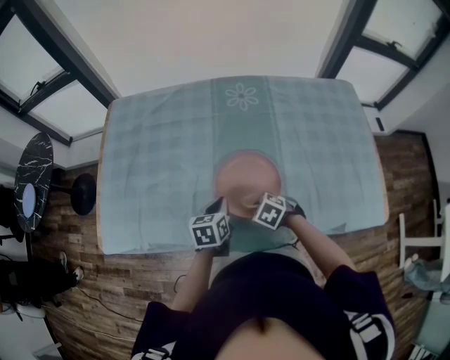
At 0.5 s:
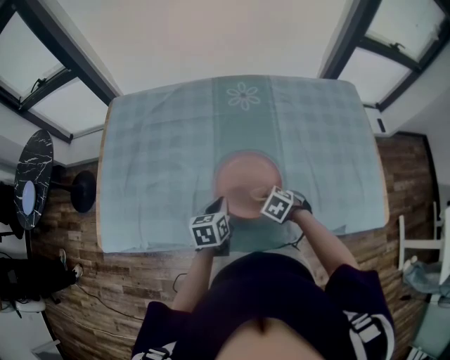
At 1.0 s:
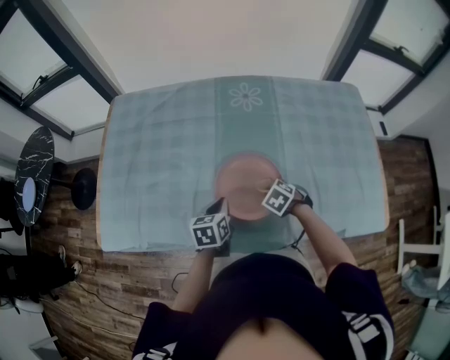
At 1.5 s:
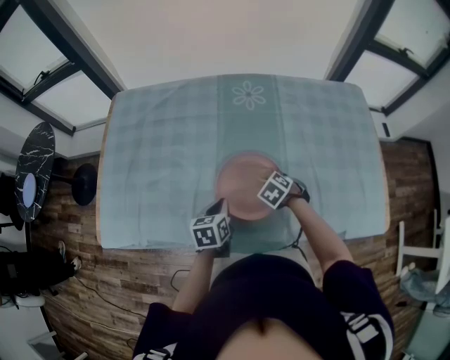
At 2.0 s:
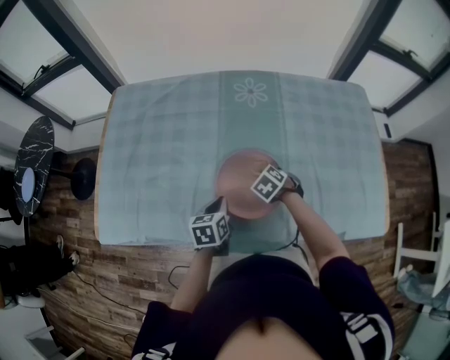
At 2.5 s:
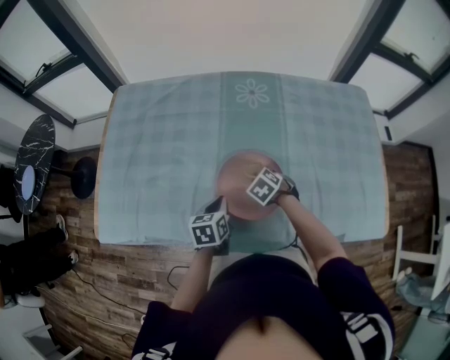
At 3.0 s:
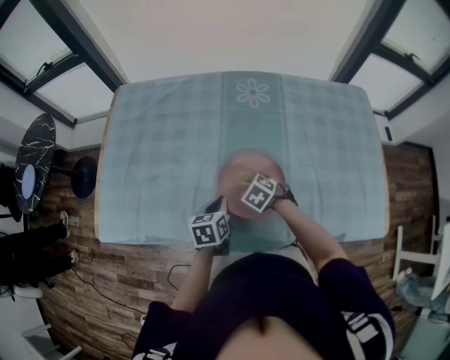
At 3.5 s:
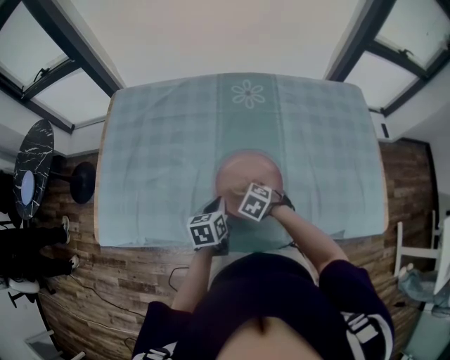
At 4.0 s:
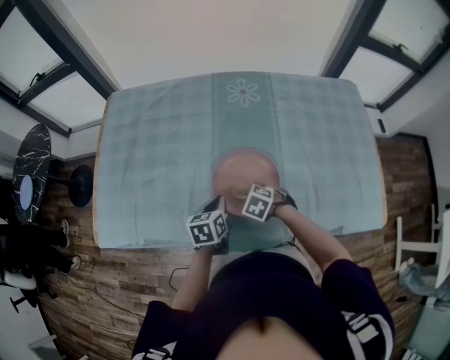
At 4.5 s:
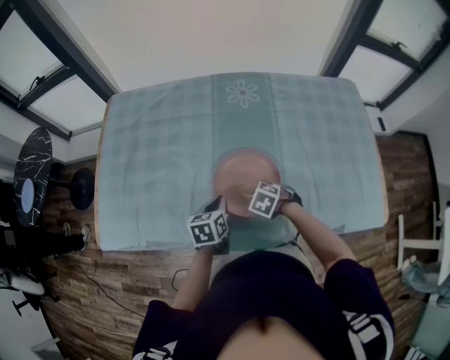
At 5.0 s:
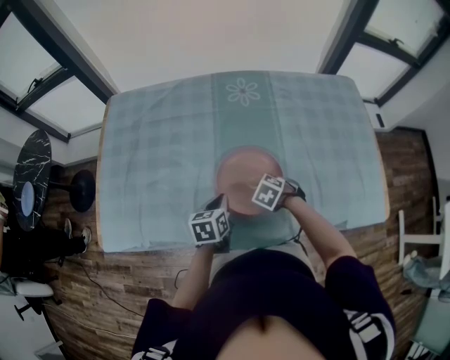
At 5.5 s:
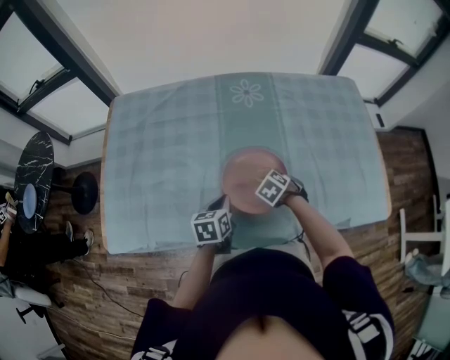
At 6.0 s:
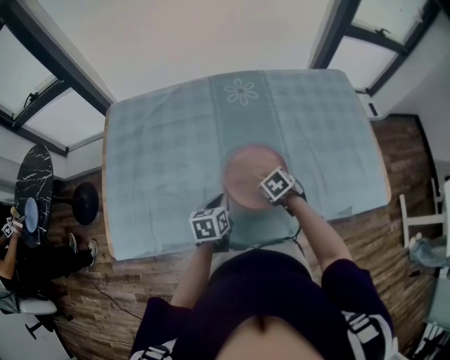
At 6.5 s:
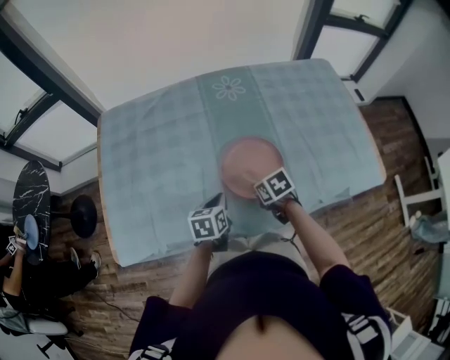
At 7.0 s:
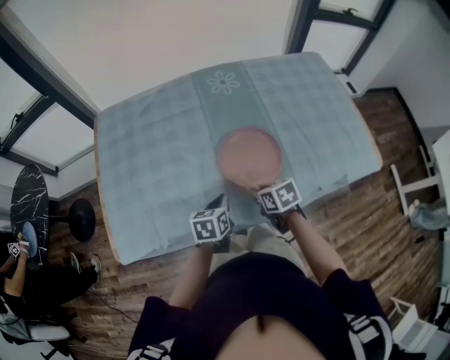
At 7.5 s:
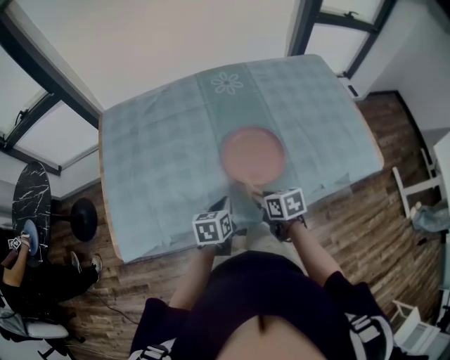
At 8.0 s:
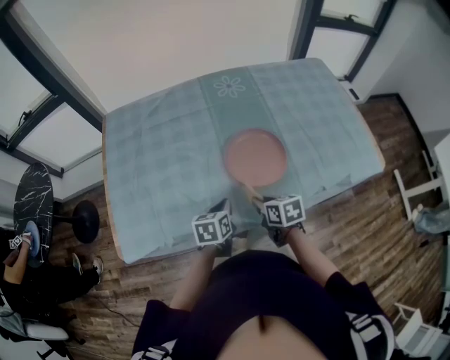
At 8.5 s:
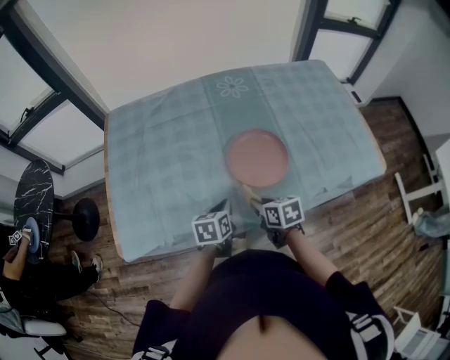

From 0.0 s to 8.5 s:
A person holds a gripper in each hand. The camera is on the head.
From 0.0 s to 2.0 s: The right gripper ends up approximately 15 cm from where it was.
From 2.0 s to 4.0 s: The right gripper moves roughly 10 cm.
From 4.0 s to 6.5 s: The left gripper changes place by approximately 5 cm. The right gripper ends up about 5 cm from where it was, and rolls clockwise, seen from behind, by some 50 degrees.
From 6.5 s to 8.5 s: The right gripper is displaced backward and to the left by about 10 cm, and changes its angle by roughly 20 degrees. The left gripper heads backward, covering roughly 5 cm.

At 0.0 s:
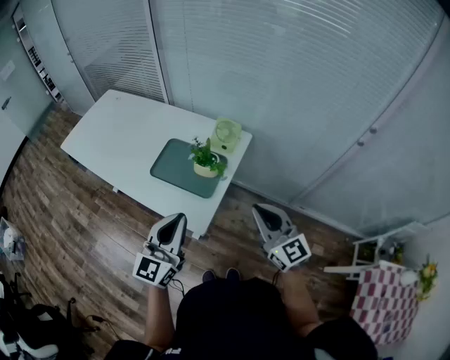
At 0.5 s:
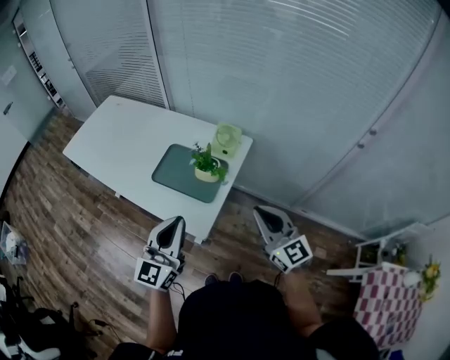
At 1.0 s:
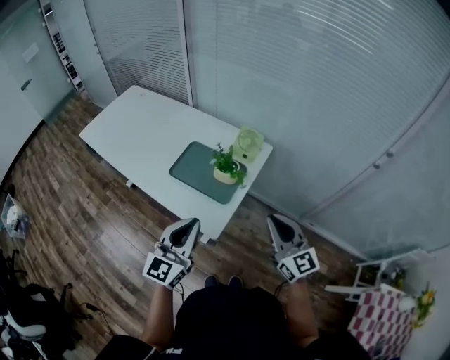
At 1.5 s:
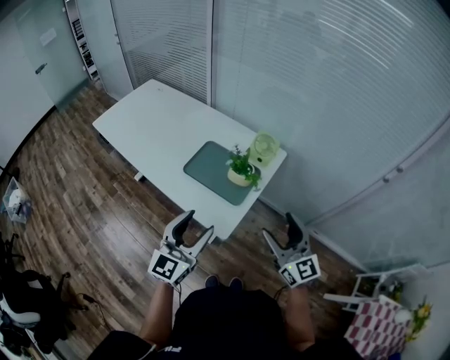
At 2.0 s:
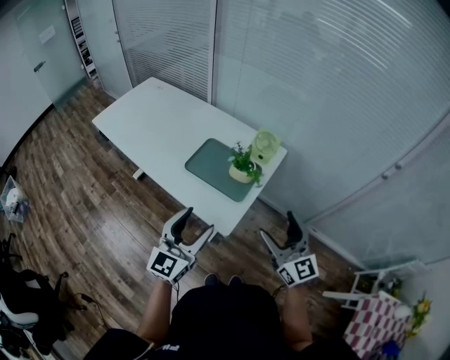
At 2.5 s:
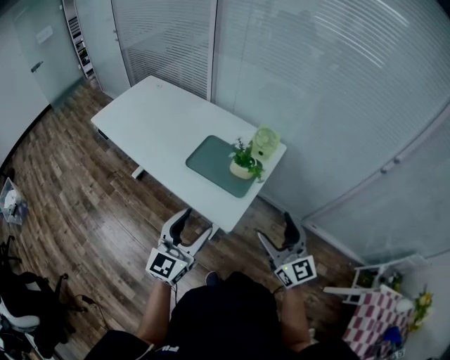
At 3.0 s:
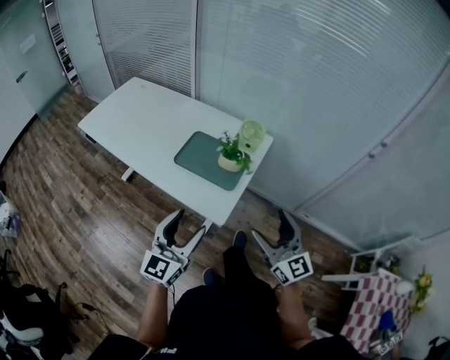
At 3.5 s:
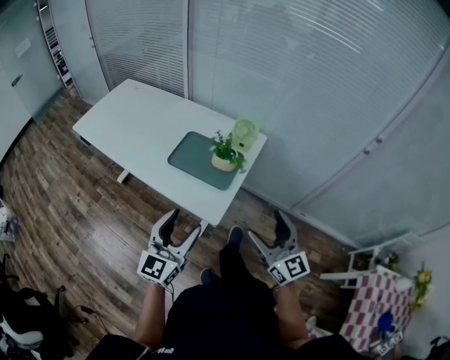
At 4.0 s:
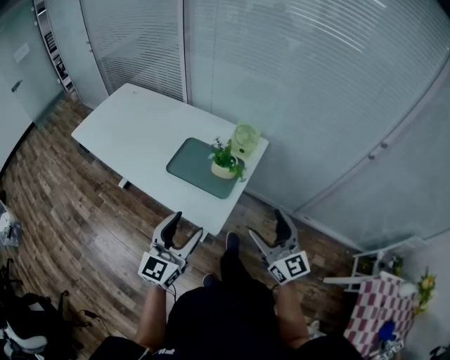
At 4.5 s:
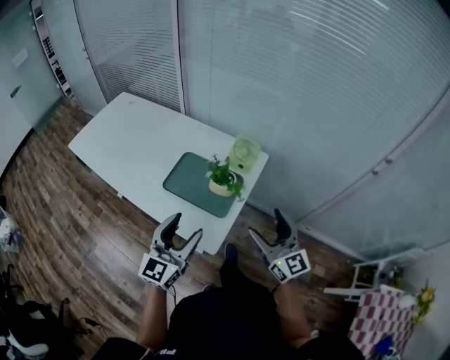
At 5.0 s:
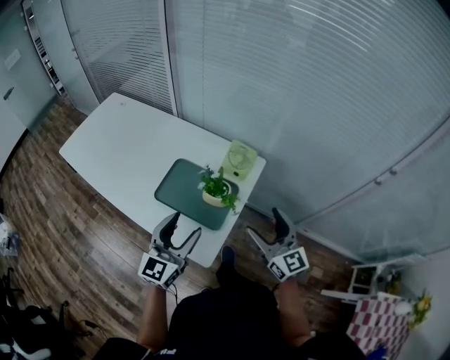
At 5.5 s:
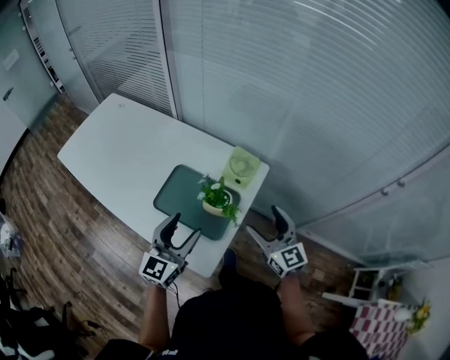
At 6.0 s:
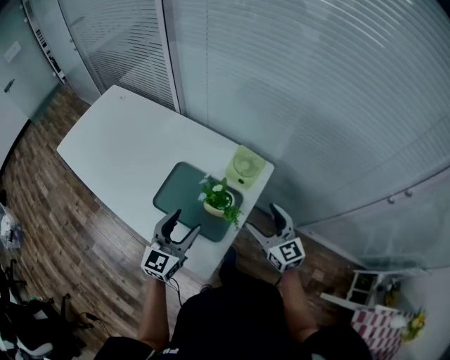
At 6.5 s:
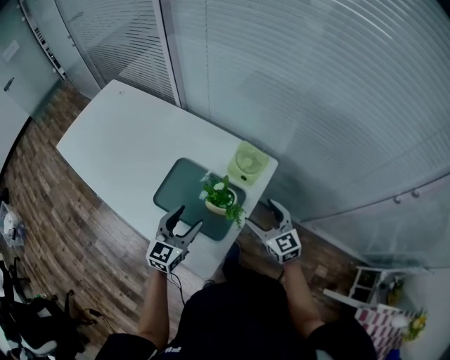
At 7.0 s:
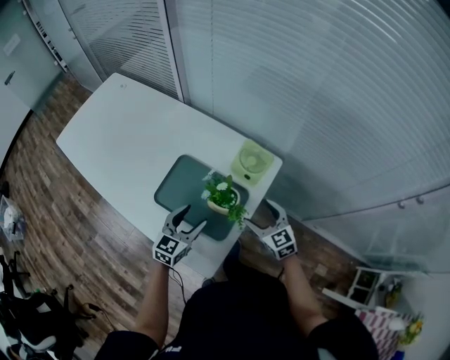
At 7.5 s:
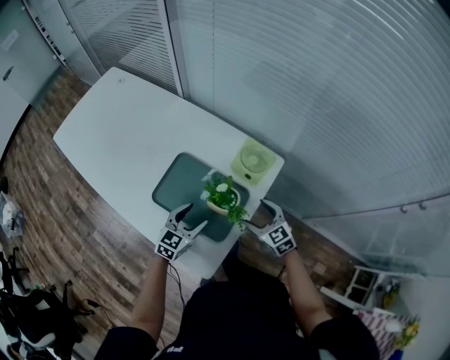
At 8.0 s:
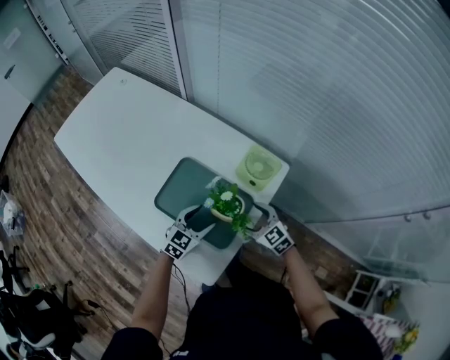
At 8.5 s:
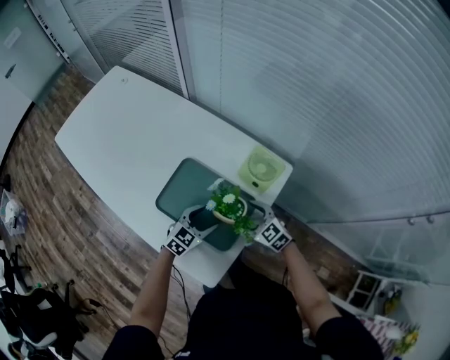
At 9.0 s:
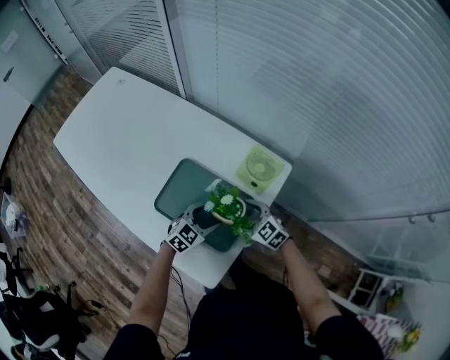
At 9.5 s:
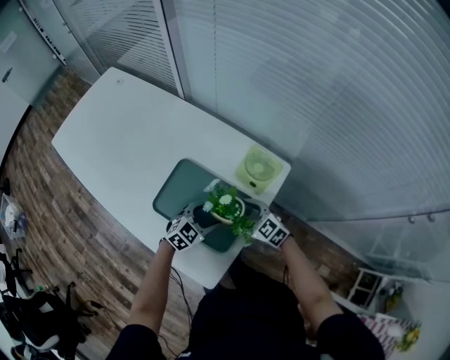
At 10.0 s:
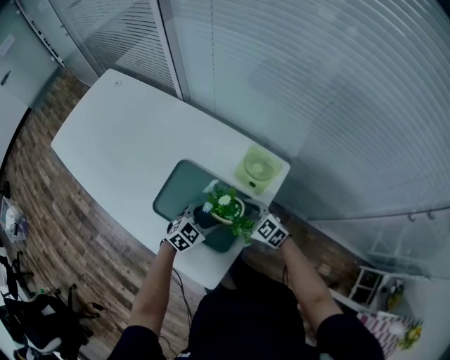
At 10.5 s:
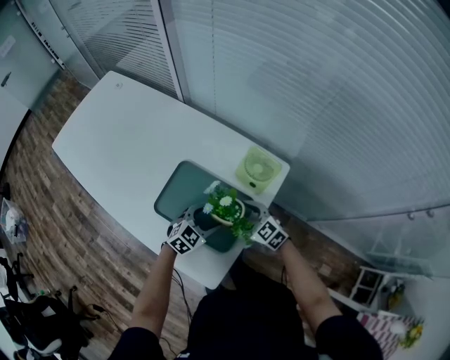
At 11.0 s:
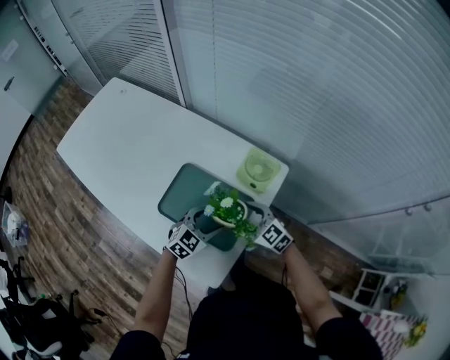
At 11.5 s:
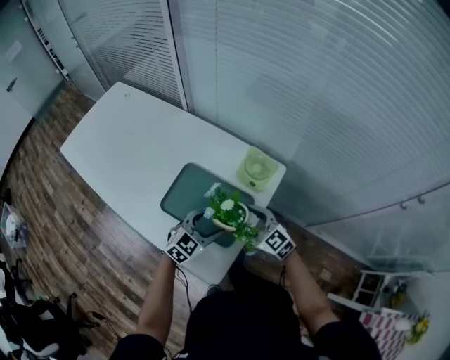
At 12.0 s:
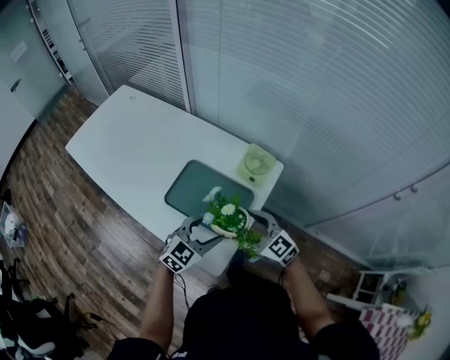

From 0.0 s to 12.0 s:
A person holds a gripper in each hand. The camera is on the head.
From 0.0 s to 2.0 s: The left gripper goes roughly 5 cm to the left, and opens. The right gripper opens its fingers.
From 2.0 s to 4.0 s: The grippers move only a little.
From 4.0 s to 6.0 s: The right gripper moves forward and downward, some 25 cm. The left gripper shifts approximately 20 cm forward.
From 6.0 s to 8.0 s: The two grippers go some 15 cm downward. The right gripper rotates roughly 30 degrees. The left gripper rotates about 30 degrees.
From 8.0 s to 10.0 s: The grippers make only small movements.
From 10.0 s to 12.0 s: The two grippers go about 15 cm upward and backward.

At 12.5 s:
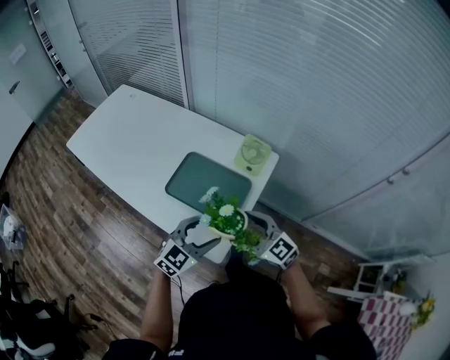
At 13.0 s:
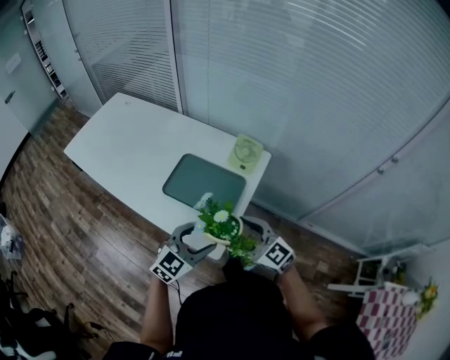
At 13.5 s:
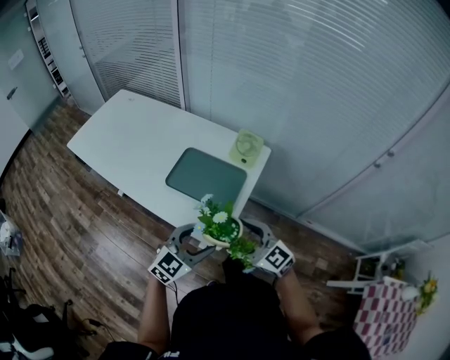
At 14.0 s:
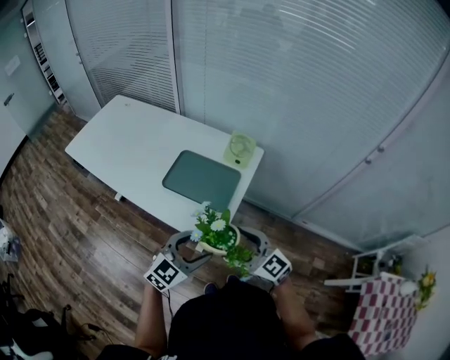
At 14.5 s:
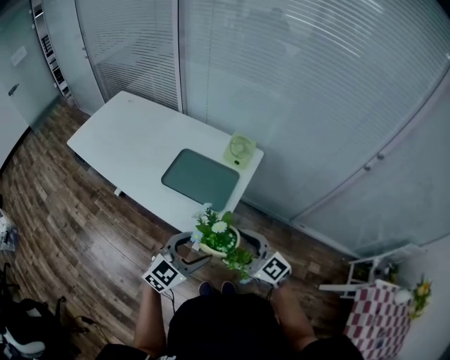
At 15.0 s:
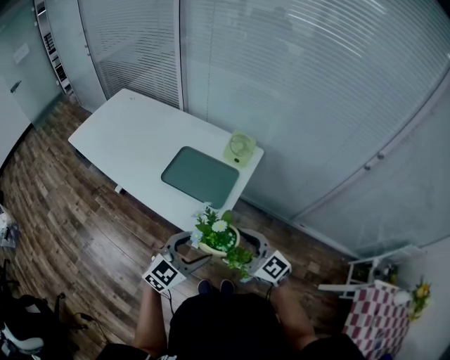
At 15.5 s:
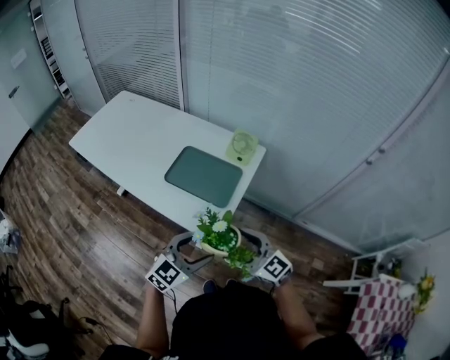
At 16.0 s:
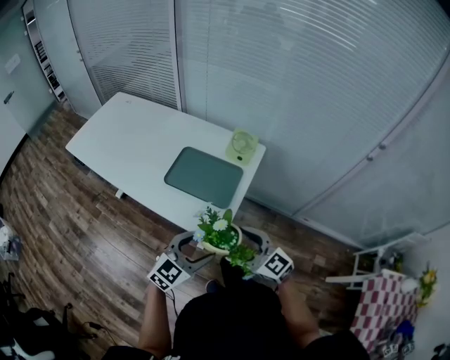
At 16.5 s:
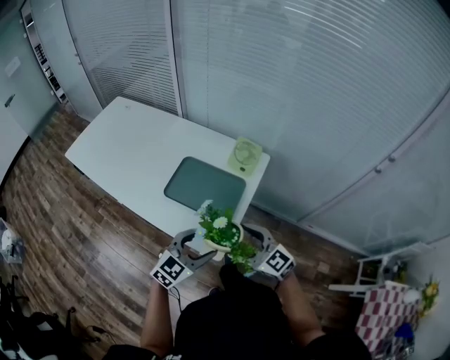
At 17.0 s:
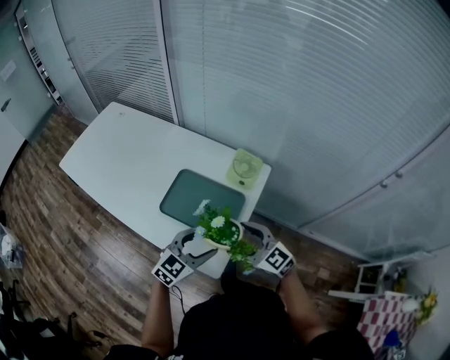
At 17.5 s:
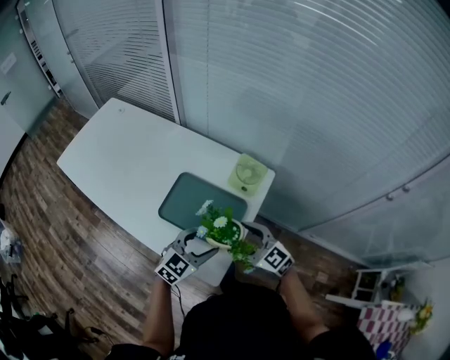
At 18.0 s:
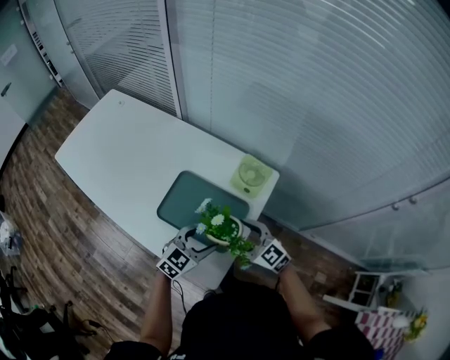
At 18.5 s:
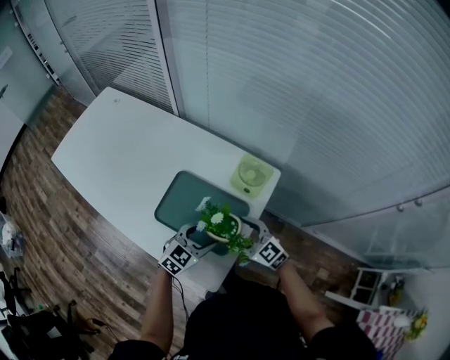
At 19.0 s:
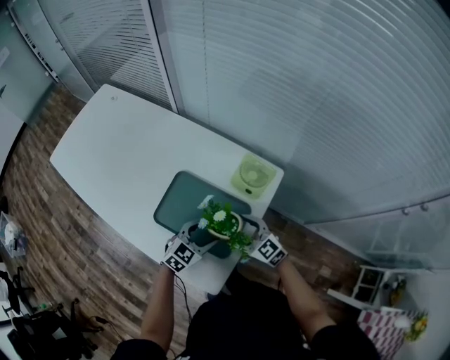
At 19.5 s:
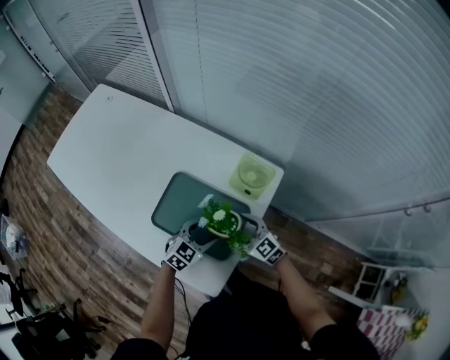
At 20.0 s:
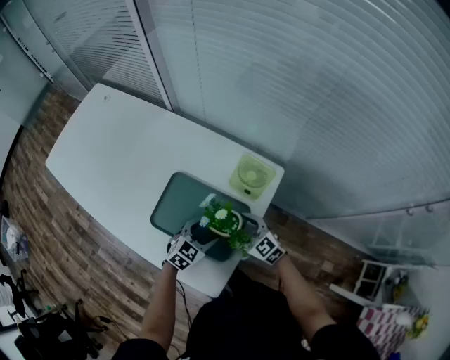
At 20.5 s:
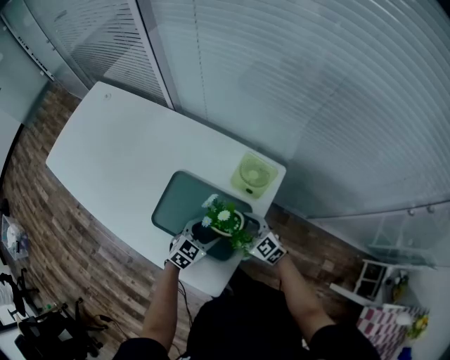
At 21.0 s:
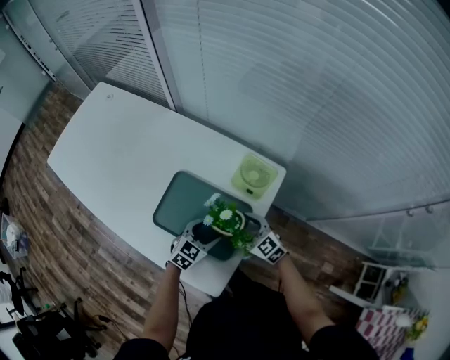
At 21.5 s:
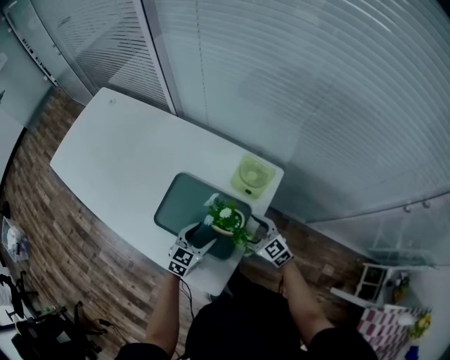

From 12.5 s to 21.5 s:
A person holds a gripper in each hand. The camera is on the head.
From 12.5 s to 14.5 s: The grippers both shift backward by roughly 15 cm.
From 14.5 s to 17.0 s: Both grippers move forward, some 15 cm.
From 17.0 s to 19.5 s: The two grippers go roughly 20 cm downward and forward.
From 19.5 s to 21.5 s: The grippers stay close to where they were, moving slightly.
